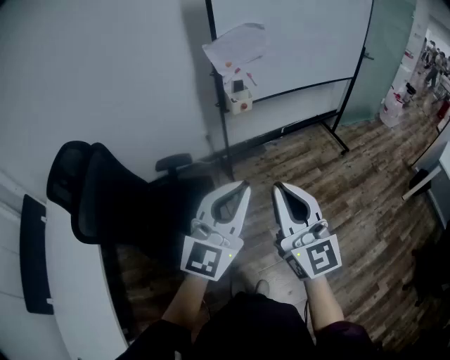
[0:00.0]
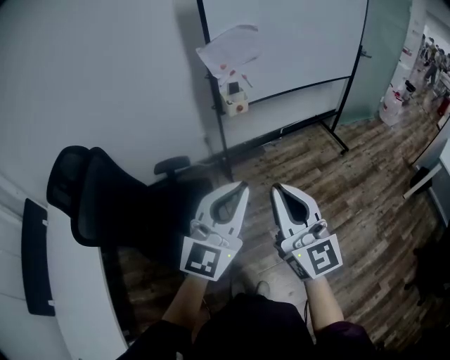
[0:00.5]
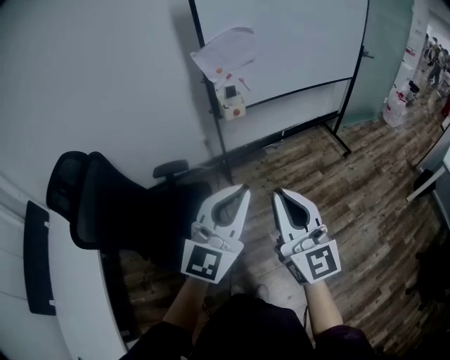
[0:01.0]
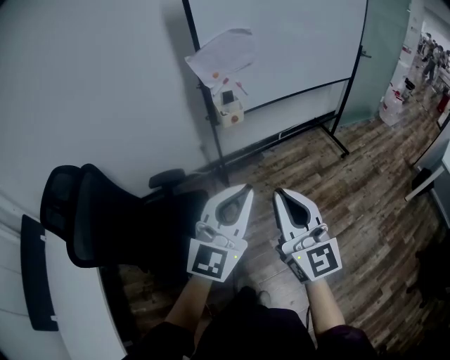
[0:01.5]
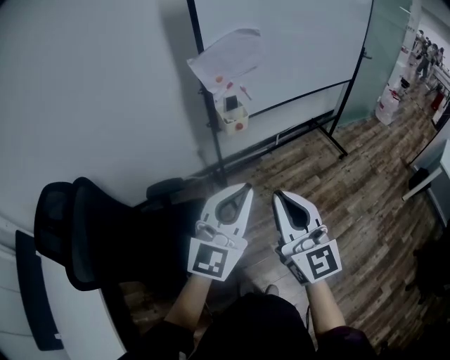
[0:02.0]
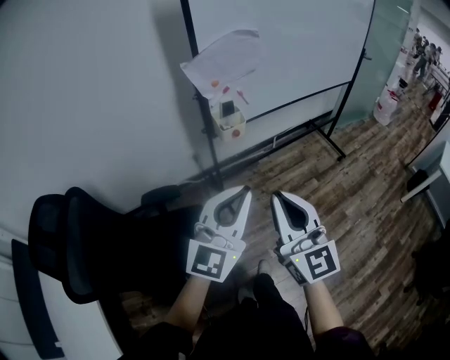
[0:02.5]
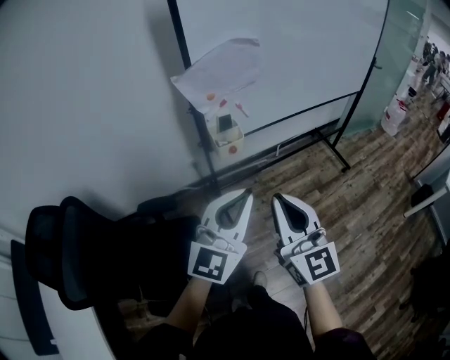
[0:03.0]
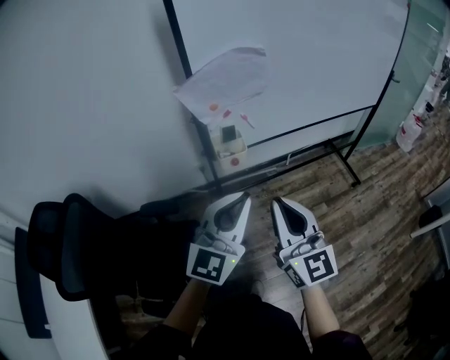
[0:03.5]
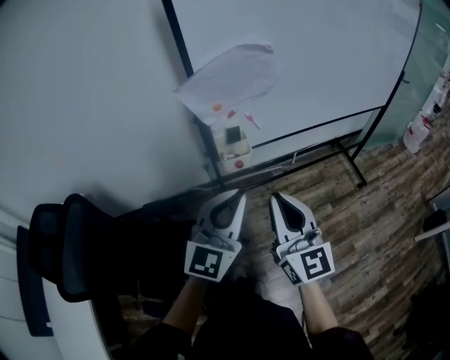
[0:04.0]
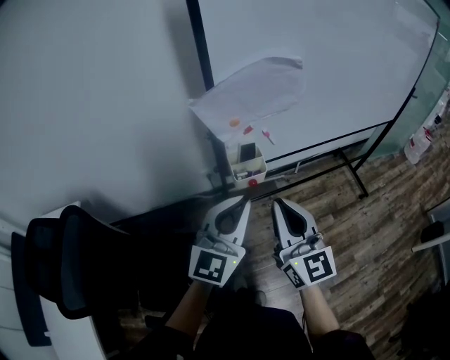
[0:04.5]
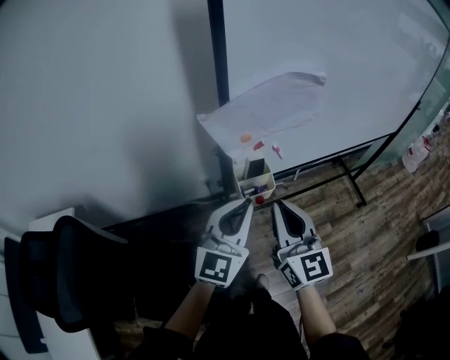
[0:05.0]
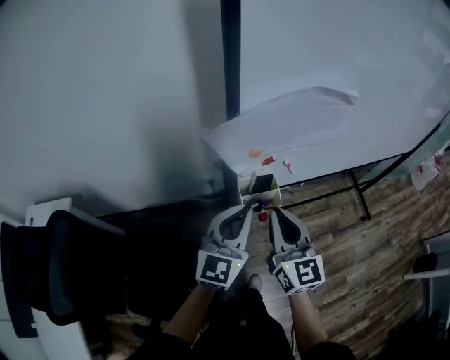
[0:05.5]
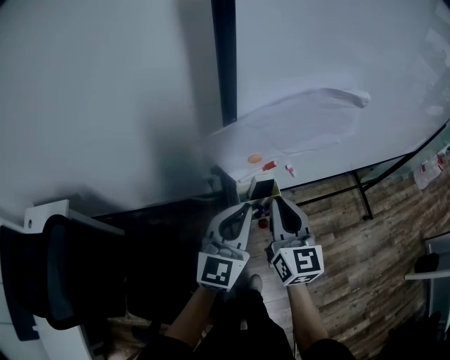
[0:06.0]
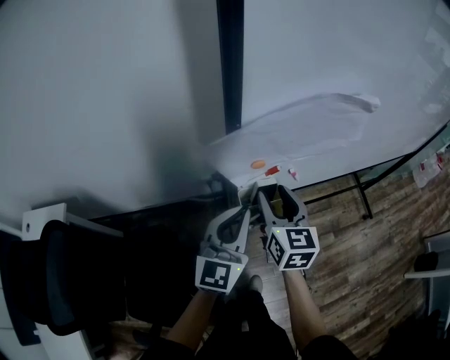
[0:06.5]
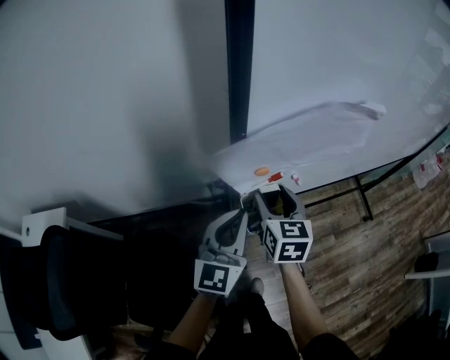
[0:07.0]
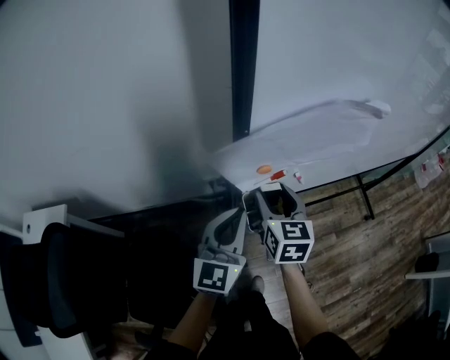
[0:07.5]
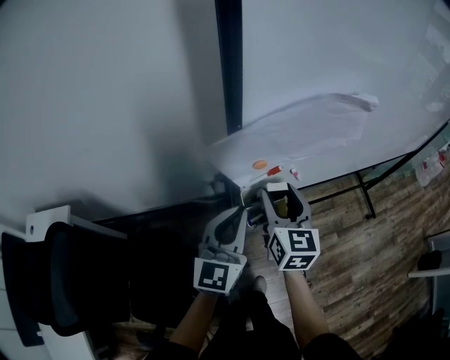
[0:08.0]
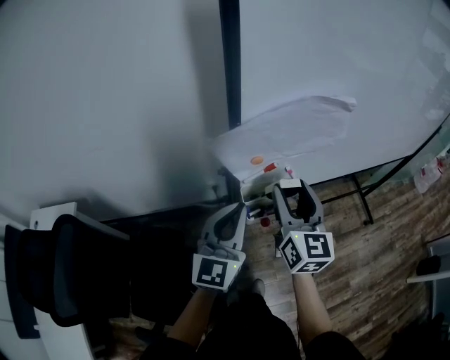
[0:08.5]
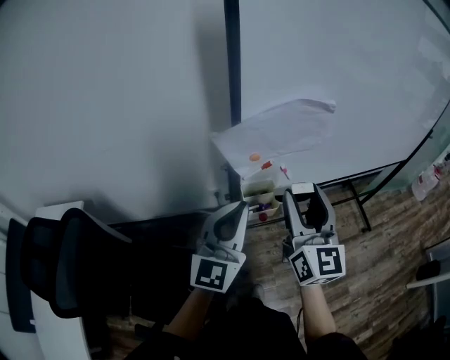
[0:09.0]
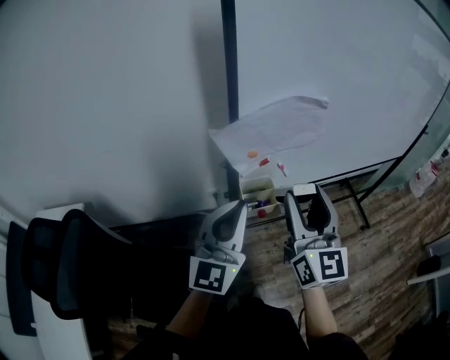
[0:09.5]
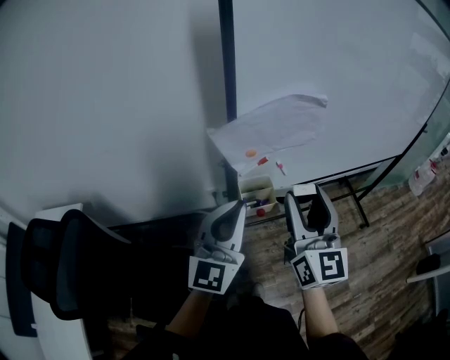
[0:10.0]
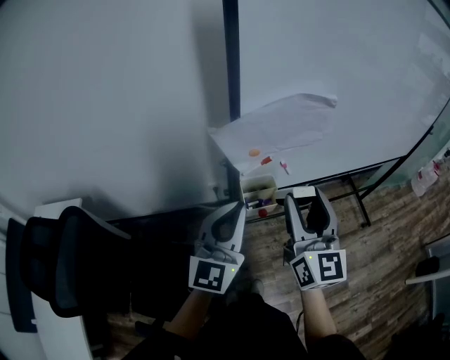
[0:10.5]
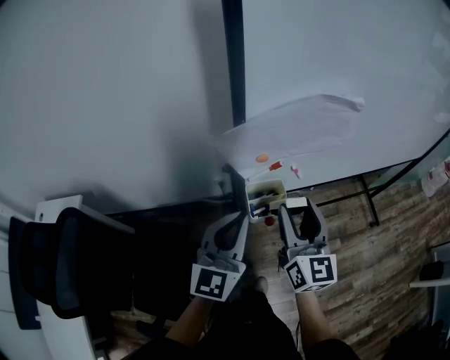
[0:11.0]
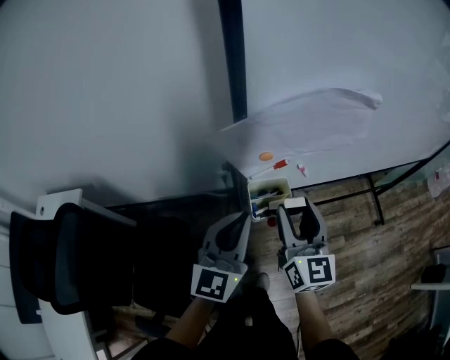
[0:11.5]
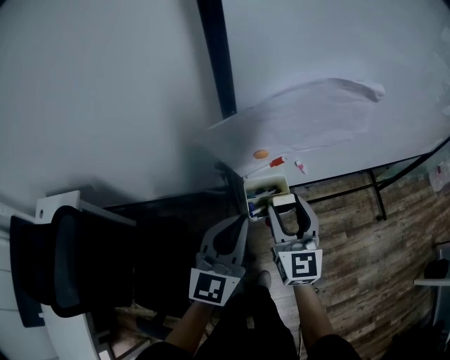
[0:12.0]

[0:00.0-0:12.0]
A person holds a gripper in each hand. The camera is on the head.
0:00.0 to 0:02.0: The grippers both shift forward by some 15 cm.
0:02.0 to 0:04.0: The two grippers go approximately 25 cm forward.
0:04.0 to 0:06.0: The right gripper heads forward, covering approximately 25 cm, while the left gripper goes roughly 25 cm forward and downward.
0:06.0 to 0:08.0: The right gripper opens its fingers.
0:08.0 to 0:10.0: The two grippers go some 20 cm upward and backward. The right gripper changes its angle by approximately 20 degrees.
0:10.0 to 0:12.0: The right gripper shifts roughly 20 cm downward and forward; the left gripper is displaced downward and forward by approximately 15 cm.

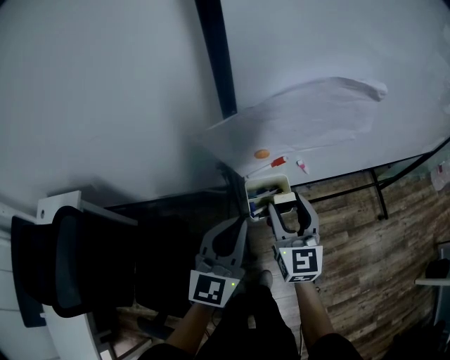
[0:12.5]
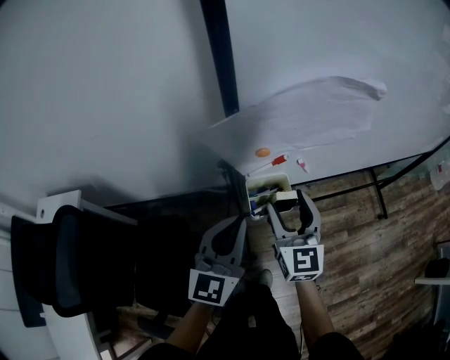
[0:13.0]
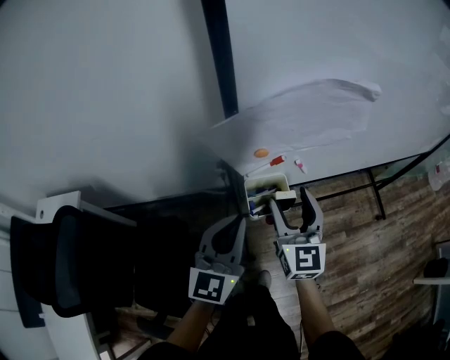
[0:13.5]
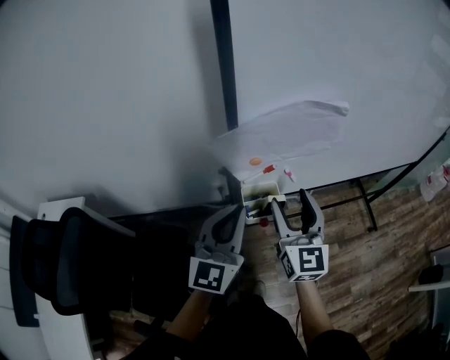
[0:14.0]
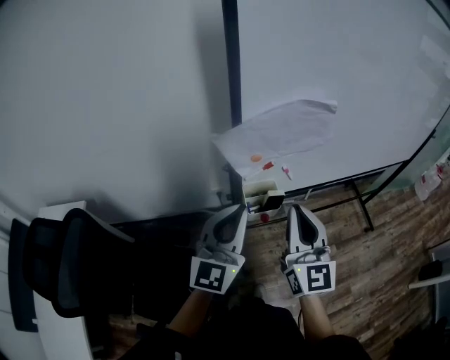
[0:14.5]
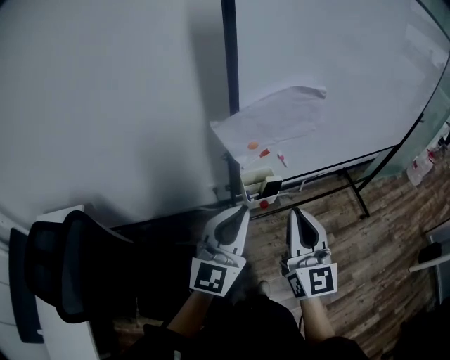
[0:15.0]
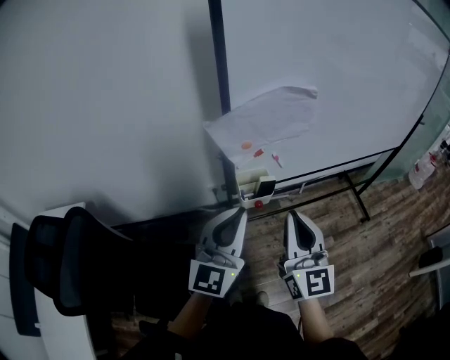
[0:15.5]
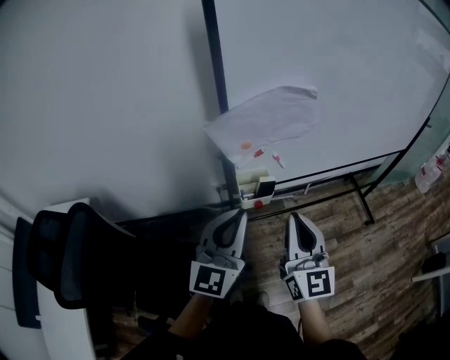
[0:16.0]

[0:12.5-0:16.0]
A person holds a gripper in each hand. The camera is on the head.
0:12.5 to 0:14.5: The right gripper is displaced upward and backward by roughly 20 cm, and closes, while the left gripper goes about 10 cm upward.
0:14.5 to 0:16.0: Both grippers move backward, approximately 5 cm.

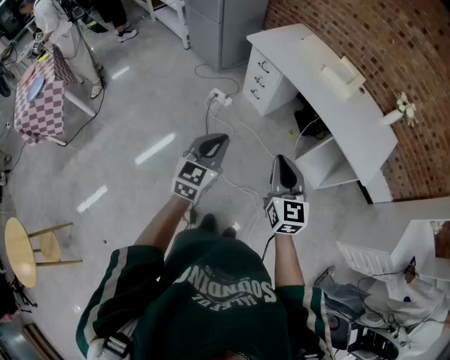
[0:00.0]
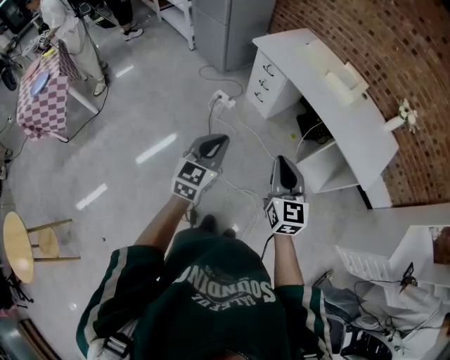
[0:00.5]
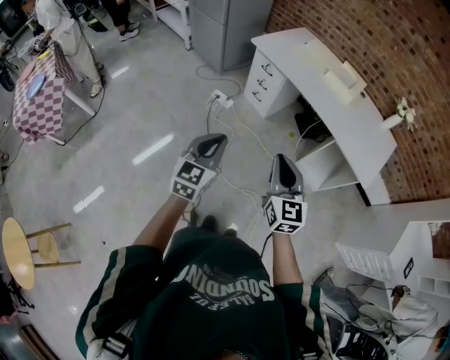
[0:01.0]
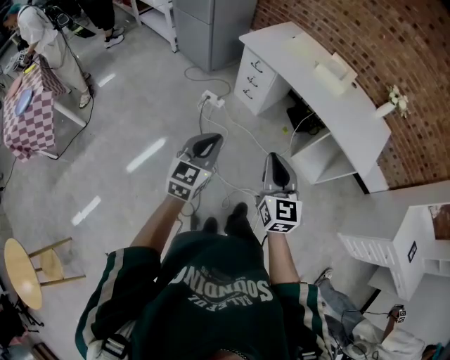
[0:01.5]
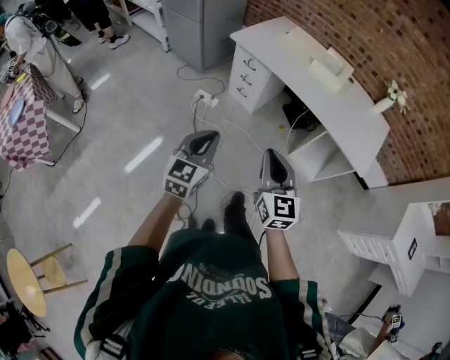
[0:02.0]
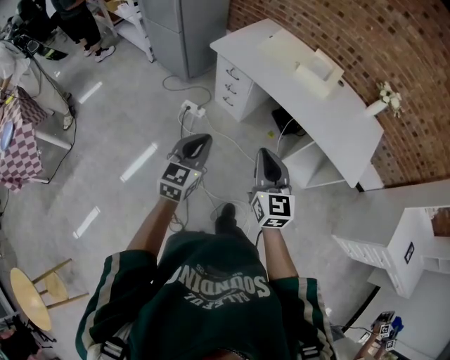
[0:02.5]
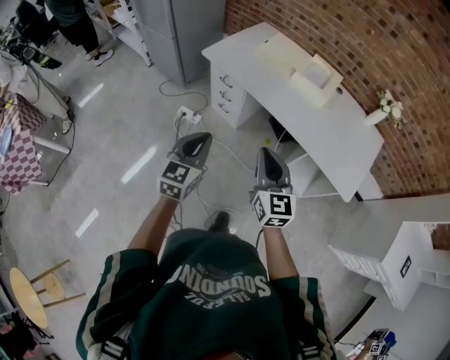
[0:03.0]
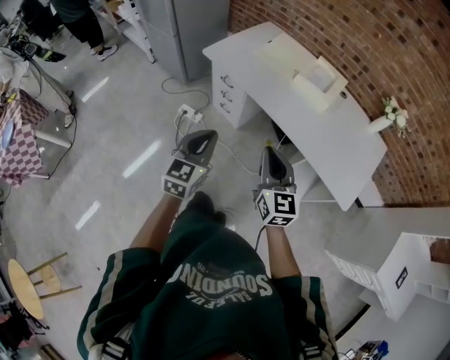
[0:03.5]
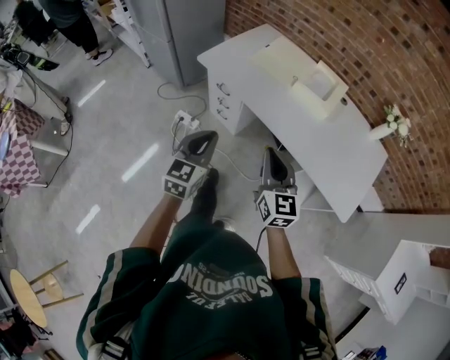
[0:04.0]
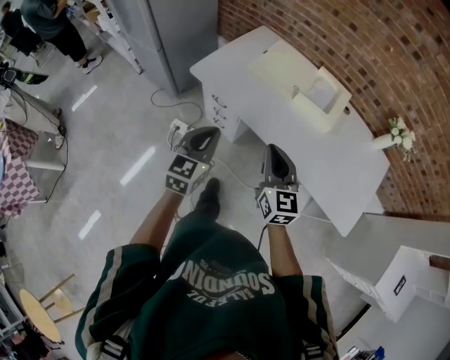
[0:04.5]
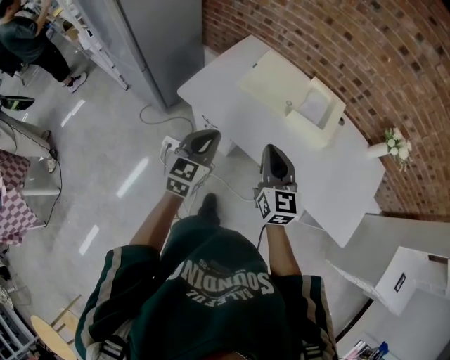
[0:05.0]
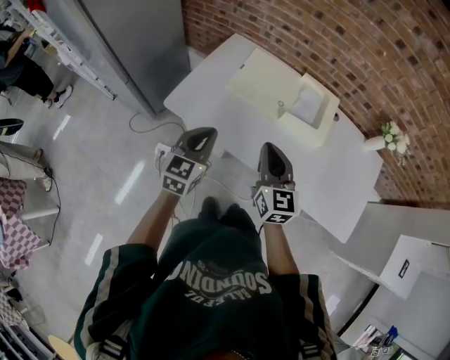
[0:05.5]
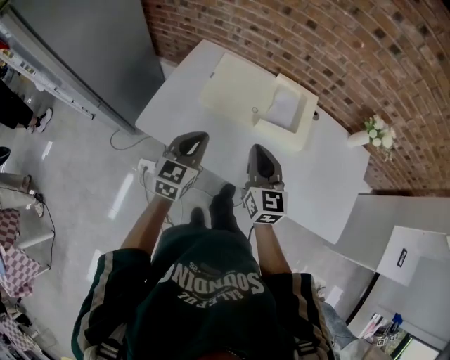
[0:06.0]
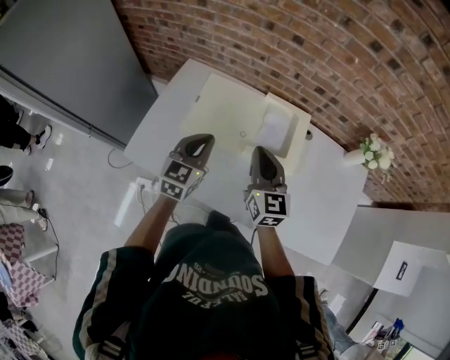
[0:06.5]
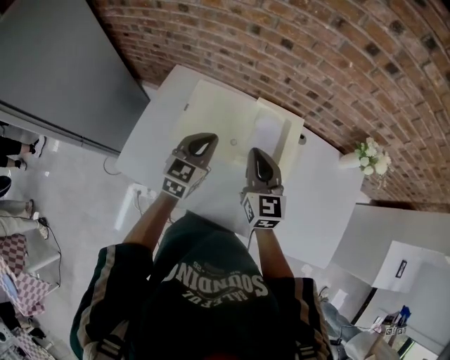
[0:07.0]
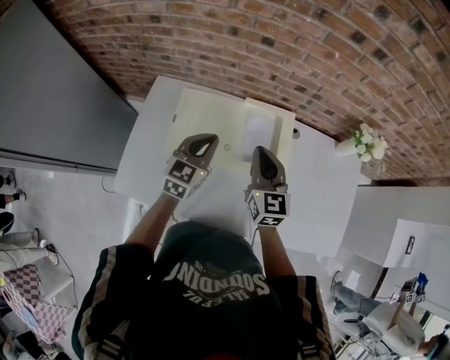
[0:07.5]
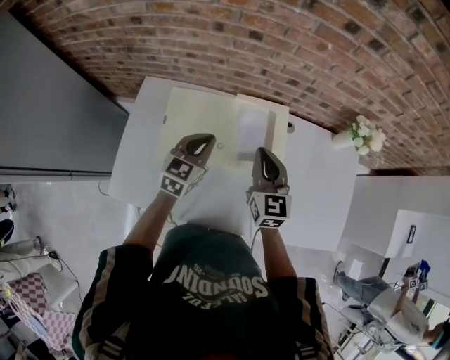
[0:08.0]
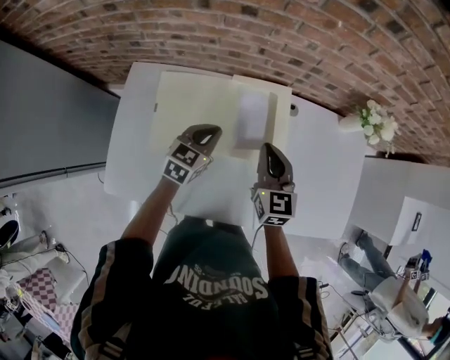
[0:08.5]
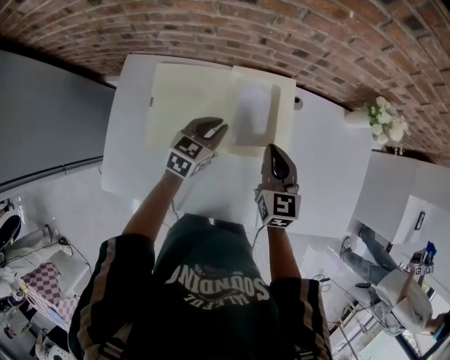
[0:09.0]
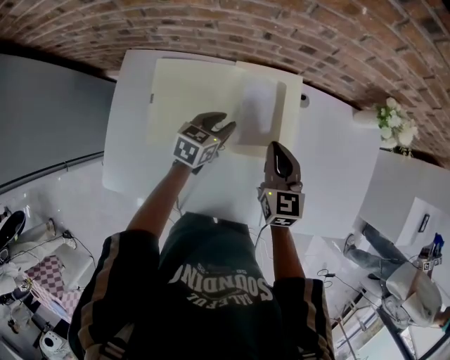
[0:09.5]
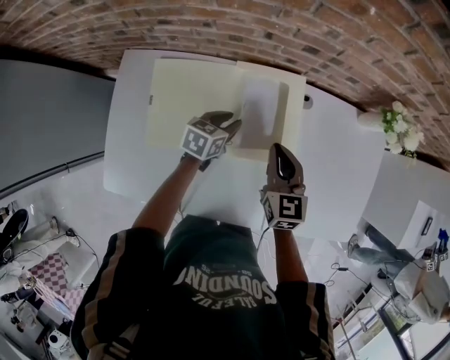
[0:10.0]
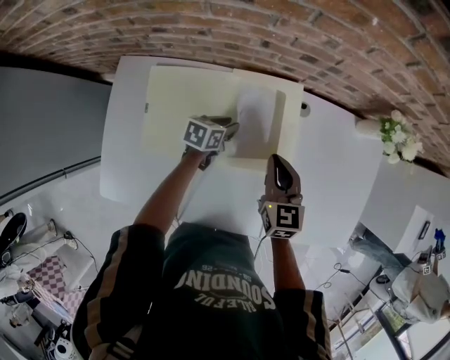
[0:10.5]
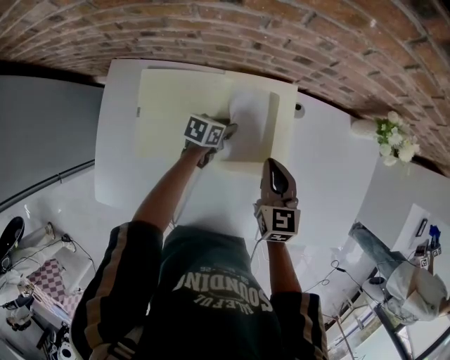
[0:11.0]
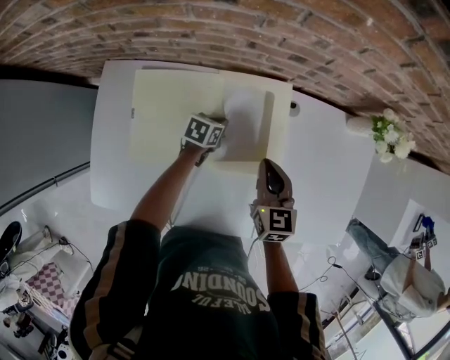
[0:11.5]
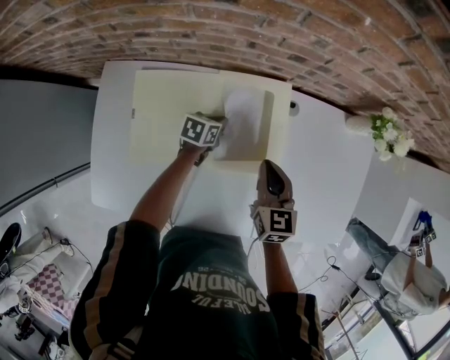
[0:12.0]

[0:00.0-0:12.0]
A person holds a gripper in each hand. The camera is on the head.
0:00.0 to 0:02.0: The left gripper travels forward by approximately 5 cm; the right gripper changes place by approximately 5 cm.
0:02.0 to 0:04.0: Both grippers move forward and to the right, roughly 35 cm.
0:04.0 to 0:06.0: The two grippers go approximately 35 cm forward.
0:06.0 to 0:08.0: Both grippers move forward and to the right, approximately 25 cm.
0:08.0 to 0:10.0: The left gripper is displaced downward and forward by roughly 20 cm, swivels roughly 30 degrees, and opens up. Meanwhile the right gripper shifts approximately 10 cm downward.
0:10.0 to 0:12.0: The left gripper heads downward, covering approximately 10 cm, and closes its fingers.
